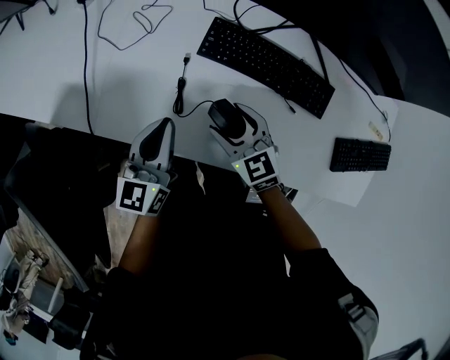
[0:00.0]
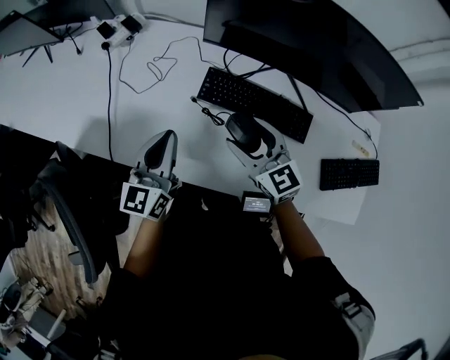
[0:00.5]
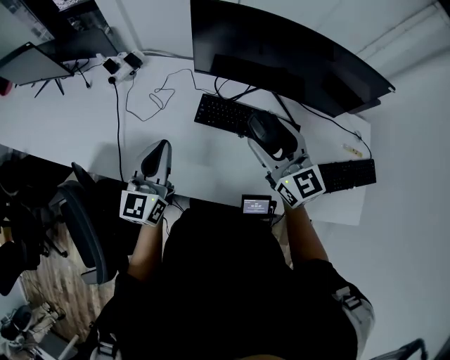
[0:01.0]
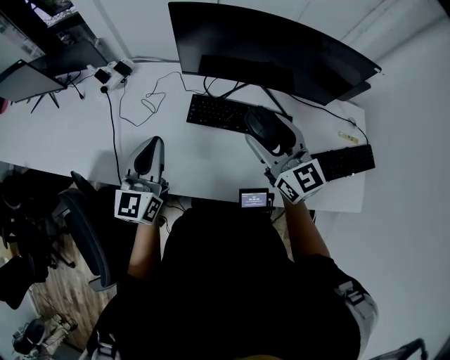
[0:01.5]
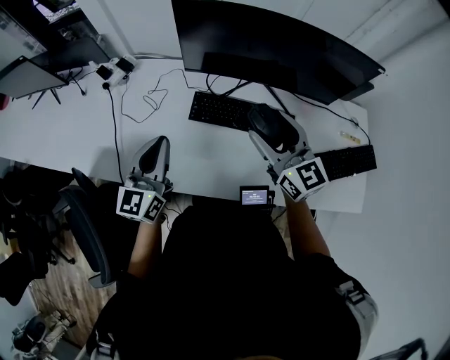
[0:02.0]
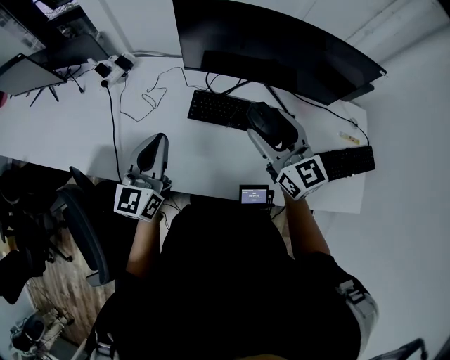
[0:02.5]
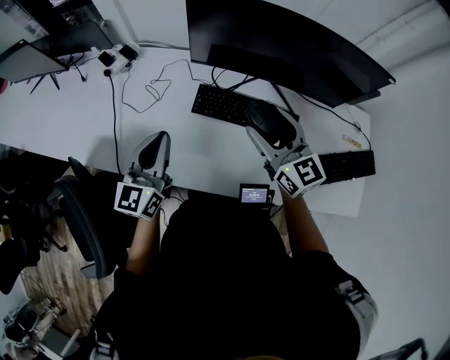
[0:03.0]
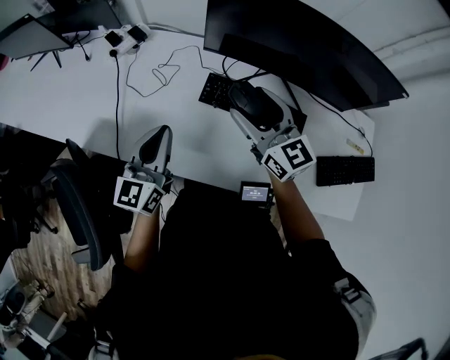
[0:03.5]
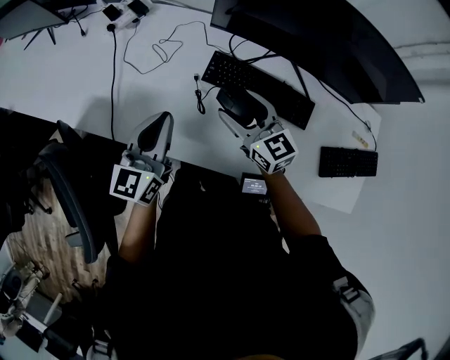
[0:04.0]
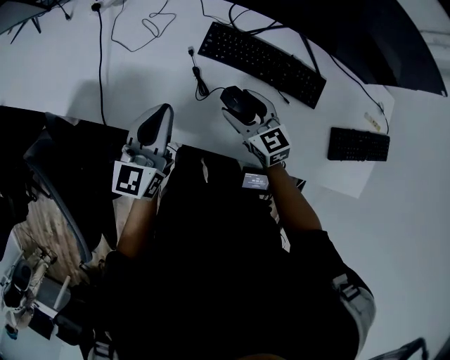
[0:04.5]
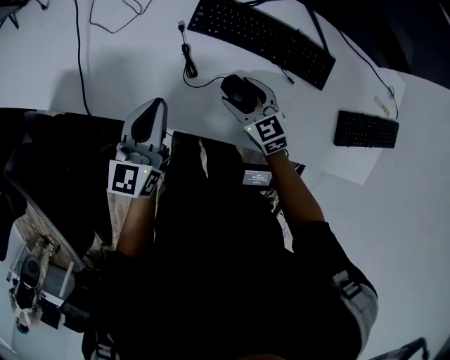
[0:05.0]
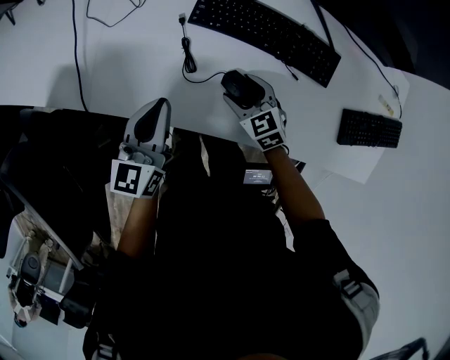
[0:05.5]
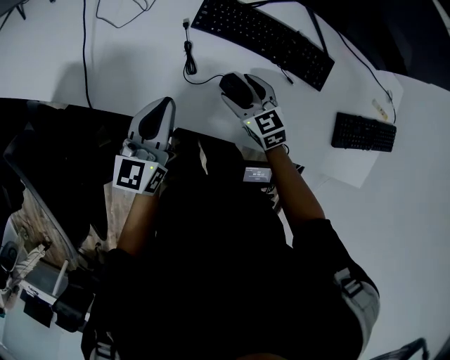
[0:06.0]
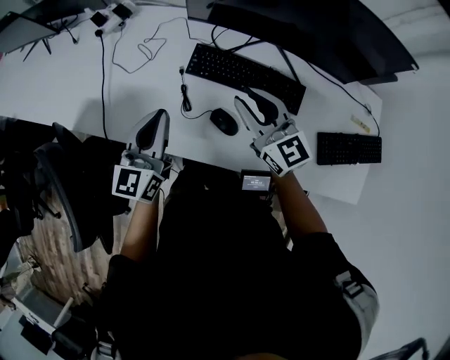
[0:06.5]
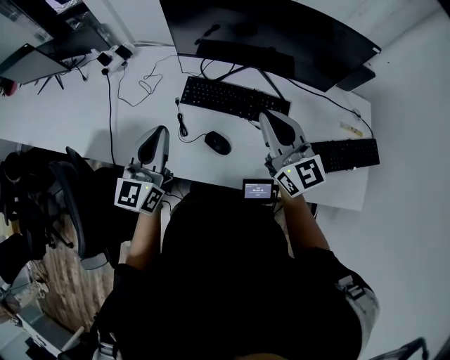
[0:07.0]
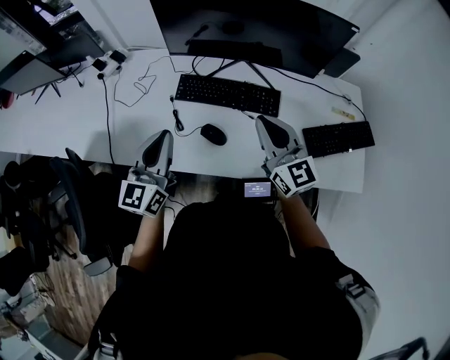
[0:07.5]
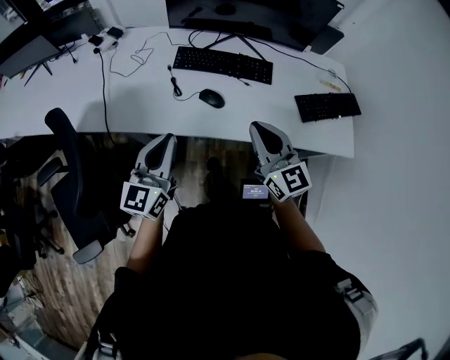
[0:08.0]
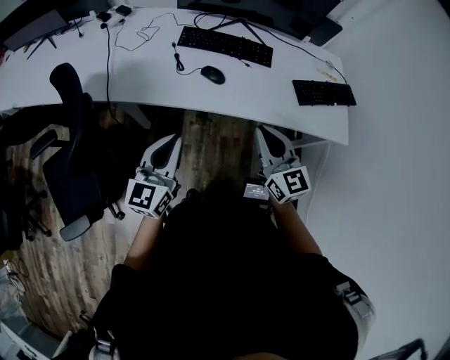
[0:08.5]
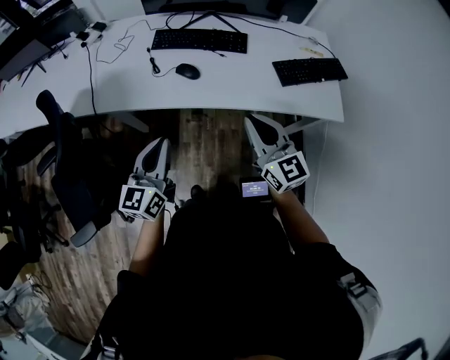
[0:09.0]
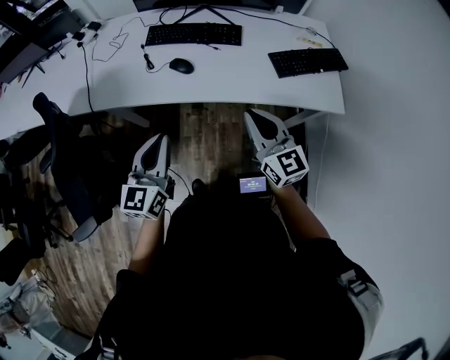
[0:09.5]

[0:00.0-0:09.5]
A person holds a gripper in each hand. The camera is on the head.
0:00.0 to 0:02.0: The right gripper shifts about 30 cm upward and to the right, and tilts its fingers approximately 30 degrees upward, while the left gripper shifts approximately 20 cm upward.
0:02.0 to 0:04.0: The left gripper shifts roughly 5 cm downward. Meanwhile the right gripper moves downward and to the left, roughly 20 cm.
0:04.0 to 0:05.5: The left gripper heads downward, covering roughly 10 cm; the right gripper is displaced downward by roughly 20 cm, and swivels roughly 30 degrees.
0:05.5 to 0:07.5: The left gripper travels upward by about 20 cm, and rotates about 20 degrees. Meanwhile the right gripper heads upward, covering some 35 cm, points its fingers some 40 degrees further upward, and closes up.
0:07.5 to 0:09.5: The two grippers go some 30 cm backward.

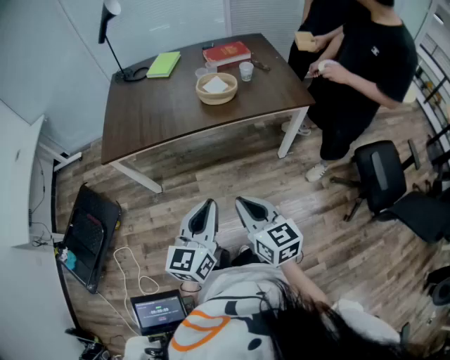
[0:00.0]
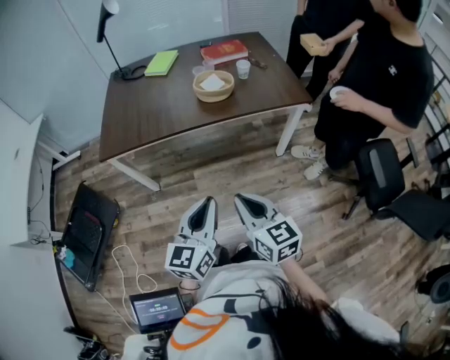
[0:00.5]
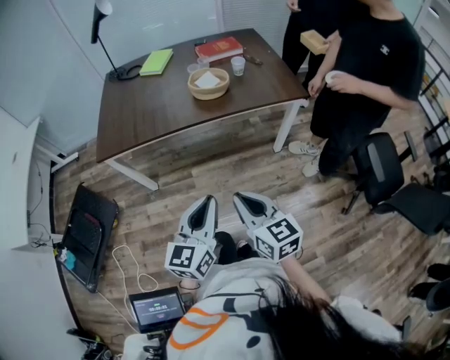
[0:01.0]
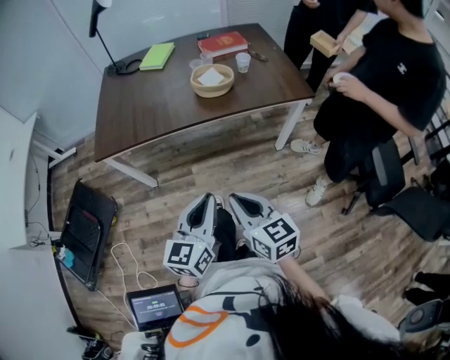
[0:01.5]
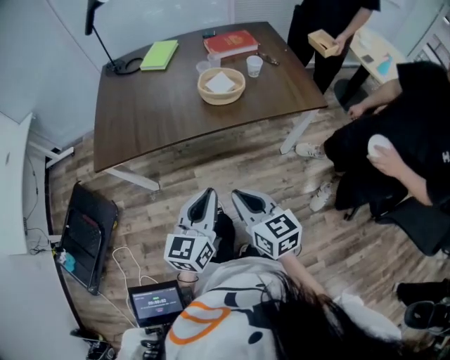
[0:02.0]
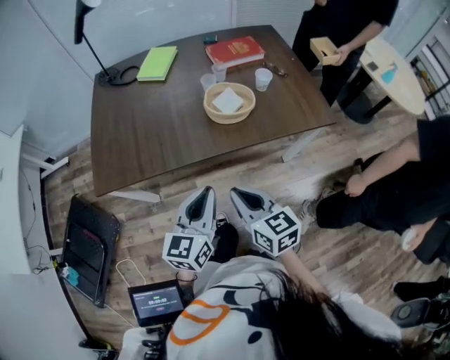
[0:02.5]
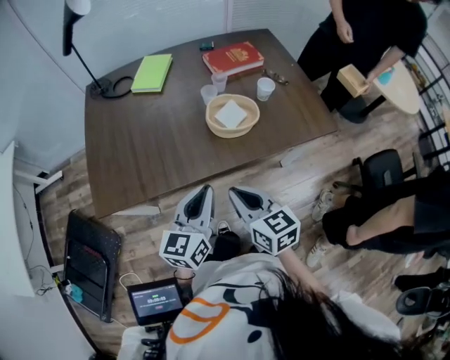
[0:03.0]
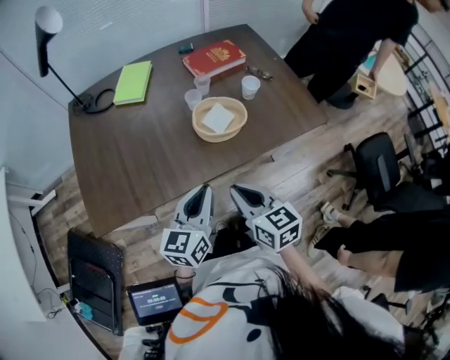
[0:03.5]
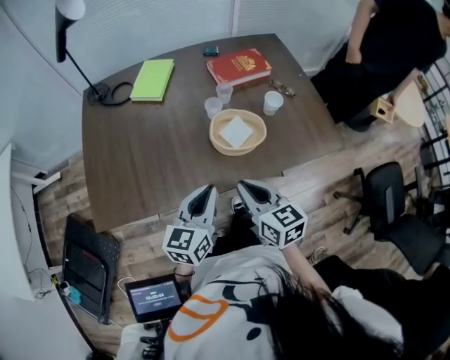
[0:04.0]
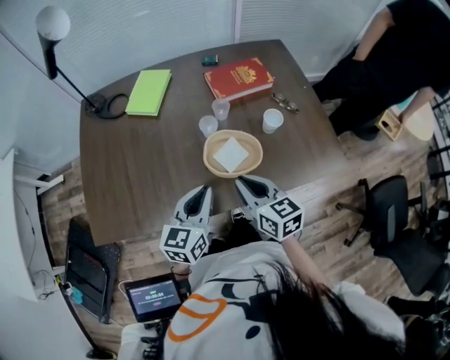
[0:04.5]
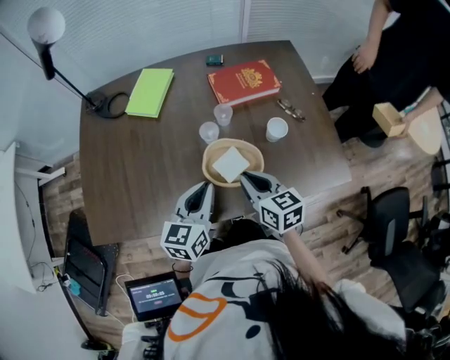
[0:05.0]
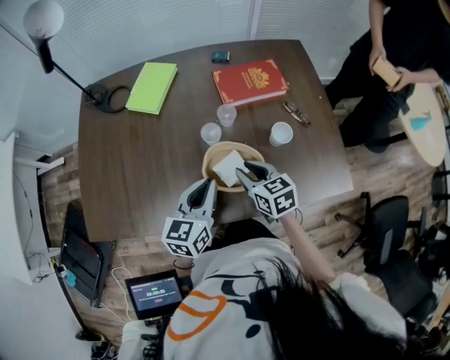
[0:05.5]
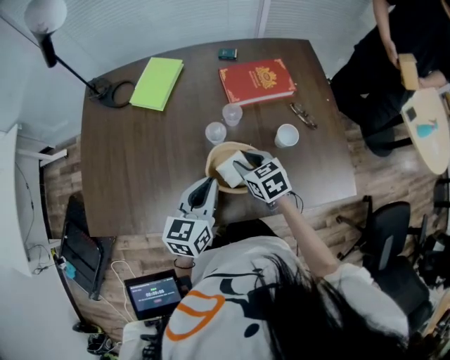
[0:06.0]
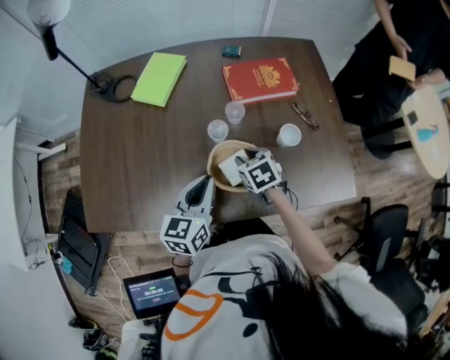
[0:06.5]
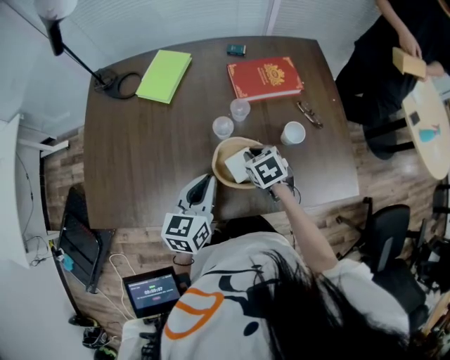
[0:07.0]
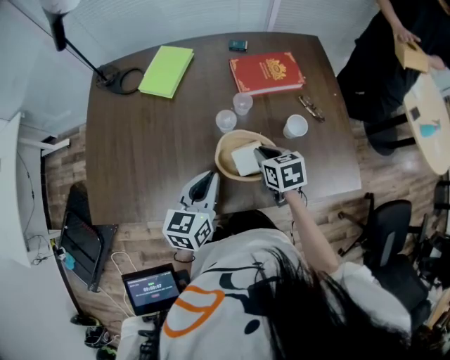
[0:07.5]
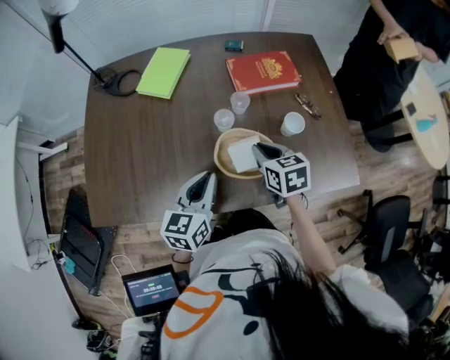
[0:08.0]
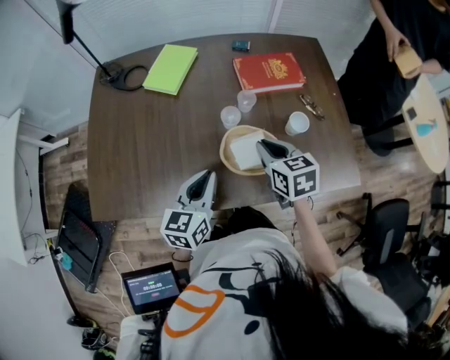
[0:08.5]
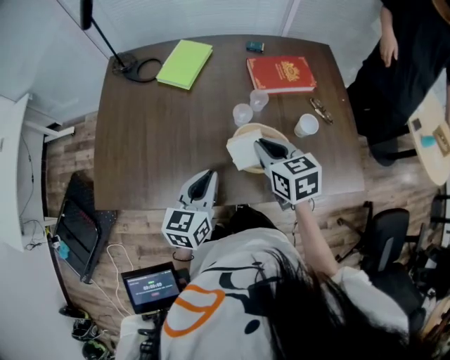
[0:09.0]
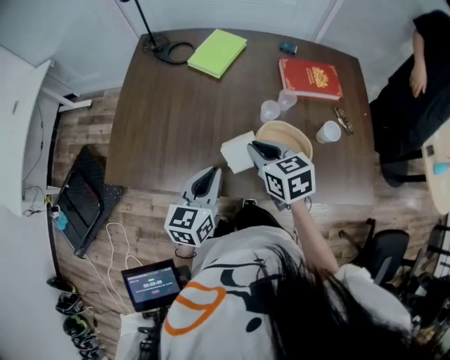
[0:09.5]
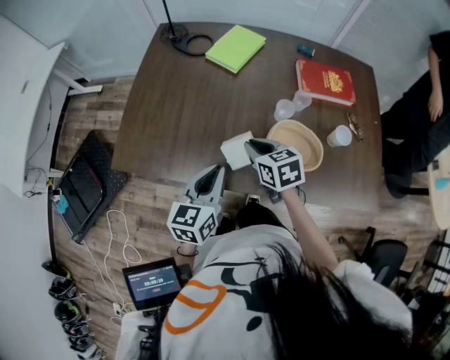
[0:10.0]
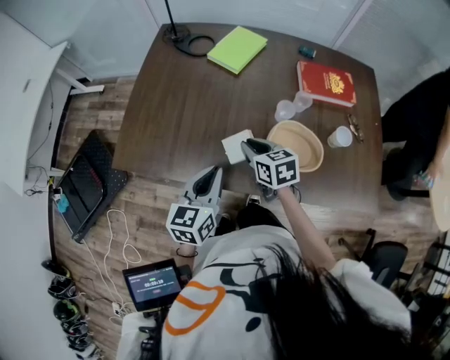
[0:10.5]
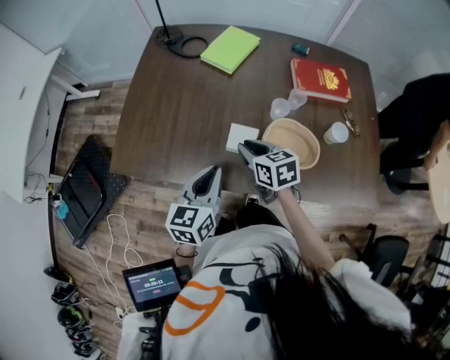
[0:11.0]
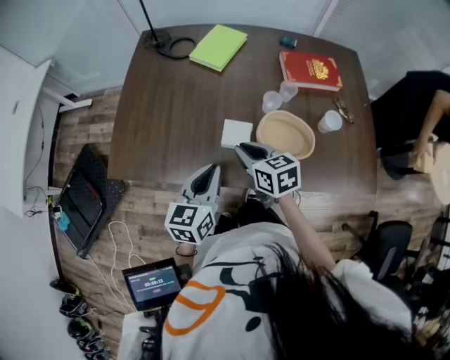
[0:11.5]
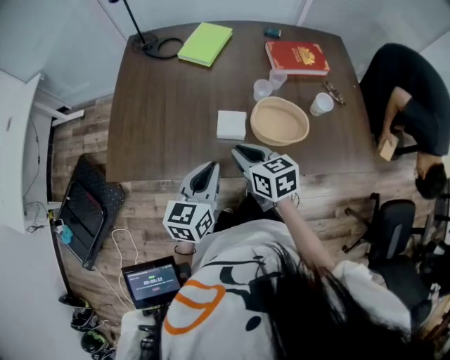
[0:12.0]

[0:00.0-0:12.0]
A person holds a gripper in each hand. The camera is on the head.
0:00.0 to 0:02.0: Both grippers travel together forward, roughly 10 cm.
0:02.0 to 0:04.0: Both grippers travel together forward, some 30 cm.
0:04.0 to 0:06.0: The right gripper travels forward and downward by approximately 25 cm, changes its angle by approximately 30 degrees, and opens its fingers. Meanwhile the left gripper moves forward, approximately 15 cm.
0:06.0 to 0:08.0: The right gripper moves approximately 5 cm, and closes up.
0:08.0 to 0:10.0: The left gripper travels to the left and backward by some 15 cm; the right gripper goes approximately 20 cm to the left, and turns by about 20 degrees.
0:10.0 to 0:12.0: The right gripper goes about 10 cm backward.

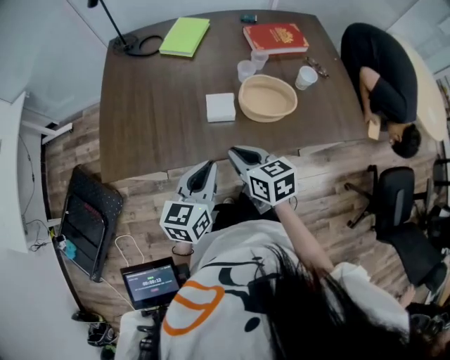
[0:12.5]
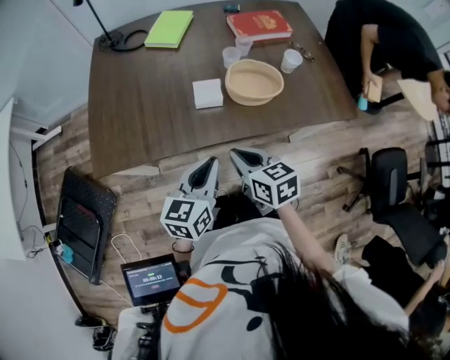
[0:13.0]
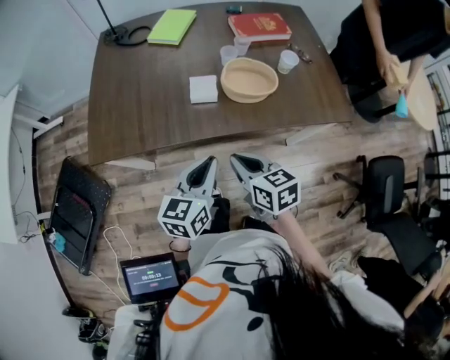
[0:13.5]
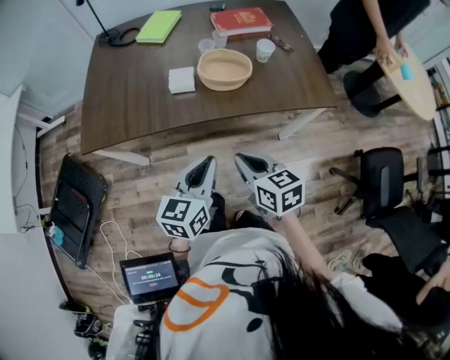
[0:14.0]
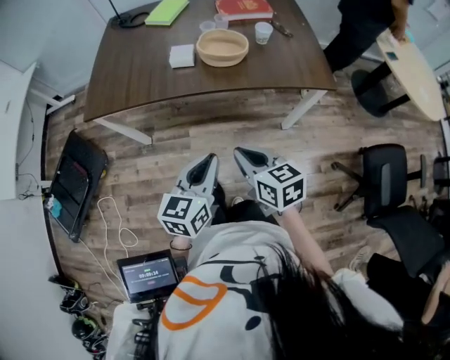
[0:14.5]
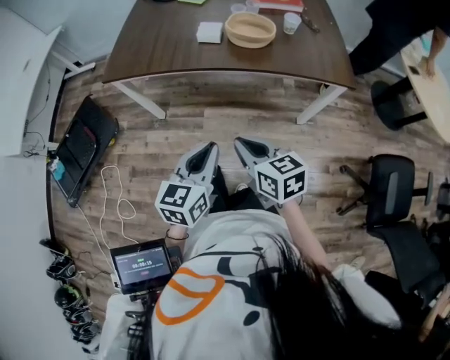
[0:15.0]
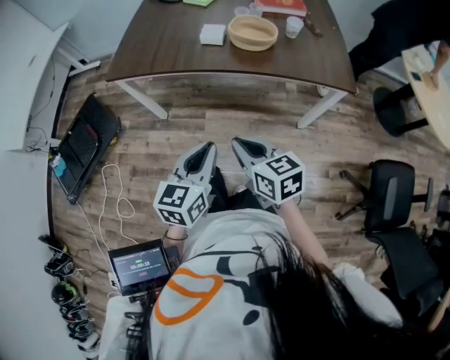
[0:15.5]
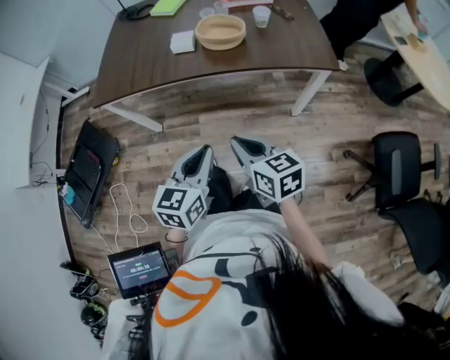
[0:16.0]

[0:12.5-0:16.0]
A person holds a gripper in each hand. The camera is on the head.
0:12.5 to 0:14.5: Both grippers travel together backward and to the right, approximately 30 cm.
0:14.5 to 0:16.0: The two grippers go roughly 5 cm backward.

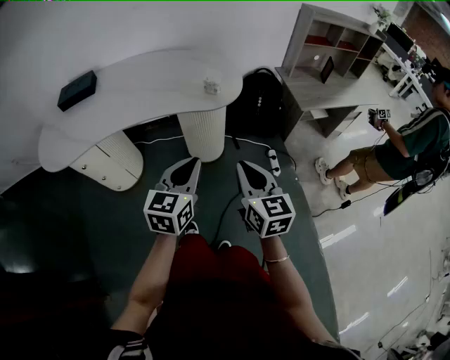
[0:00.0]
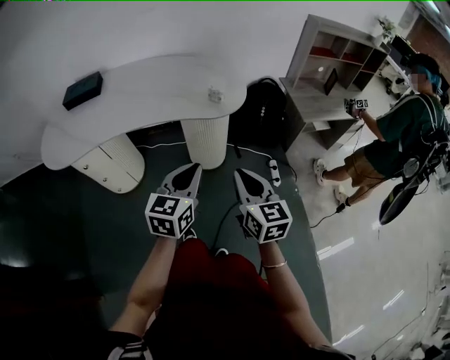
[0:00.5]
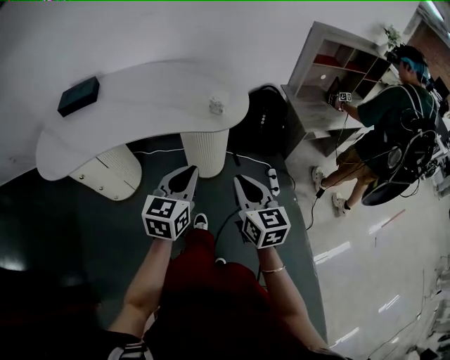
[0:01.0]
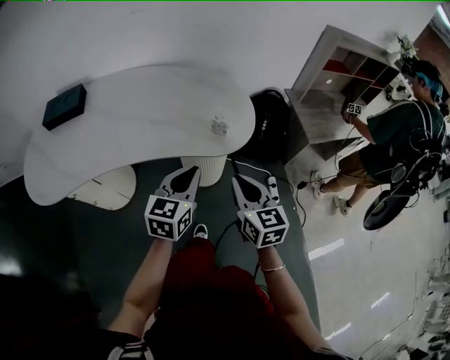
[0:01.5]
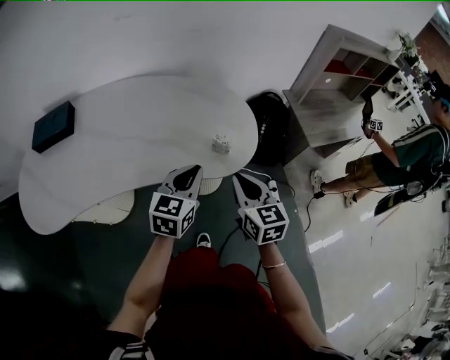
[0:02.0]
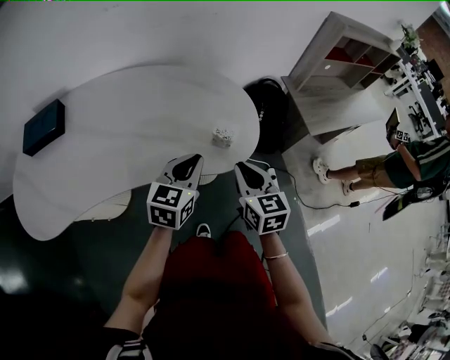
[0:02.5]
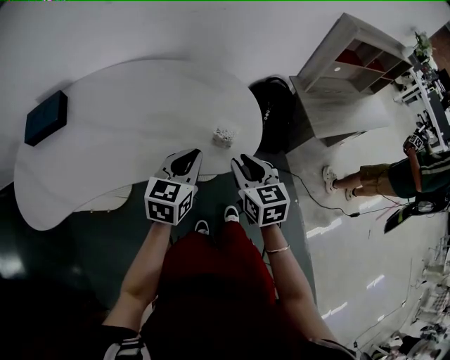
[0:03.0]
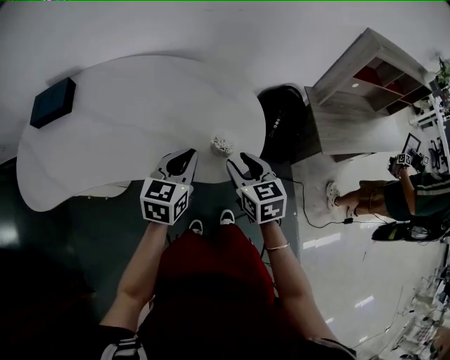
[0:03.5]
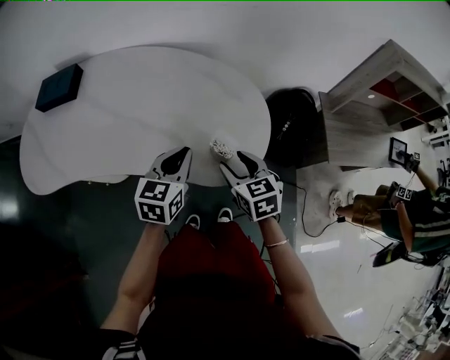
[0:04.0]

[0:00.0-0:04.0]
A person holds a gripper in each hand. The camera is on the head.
0:00.0 to 0:02.0: Both grippers move forward, about 25 cm.
0:02.0 to 0:04.0: The left gripper is displaced forward by approximately 10 cm, and swivels some 20 degrees; the right gripper is displaced forward and downward by some 15 cm, rotates approximately 30 degrees, and opens.
